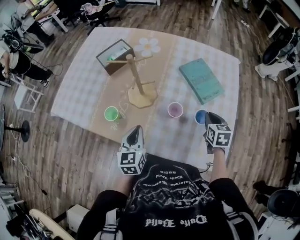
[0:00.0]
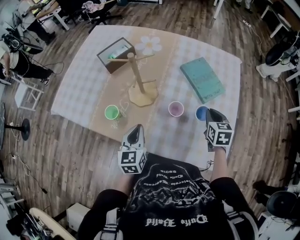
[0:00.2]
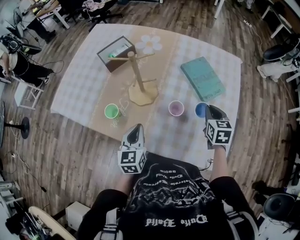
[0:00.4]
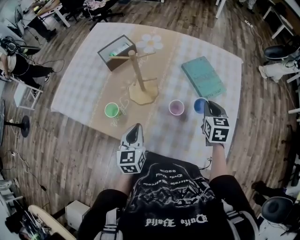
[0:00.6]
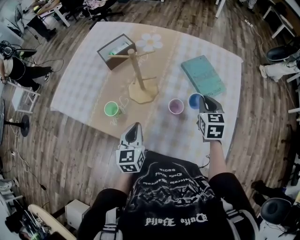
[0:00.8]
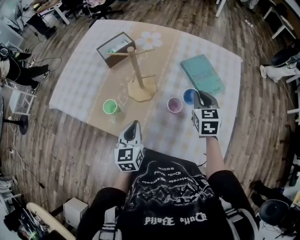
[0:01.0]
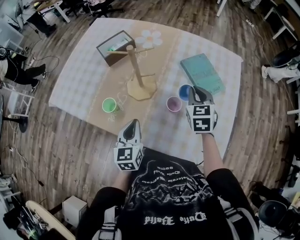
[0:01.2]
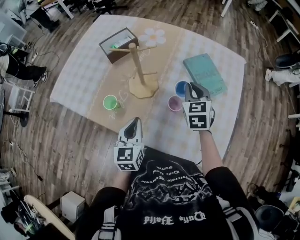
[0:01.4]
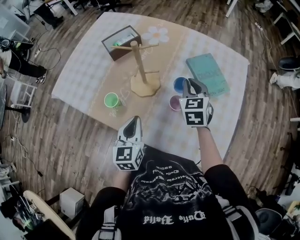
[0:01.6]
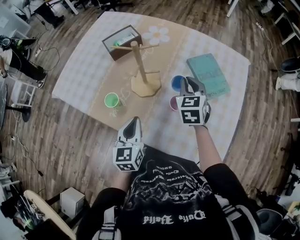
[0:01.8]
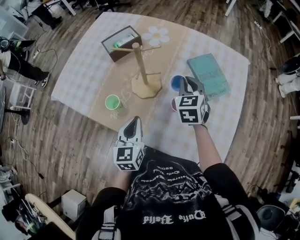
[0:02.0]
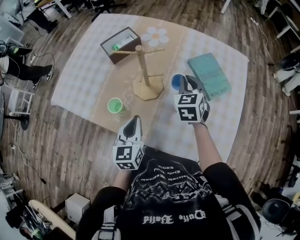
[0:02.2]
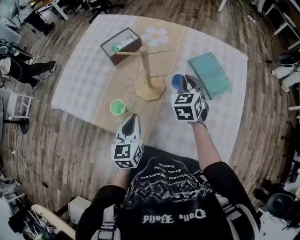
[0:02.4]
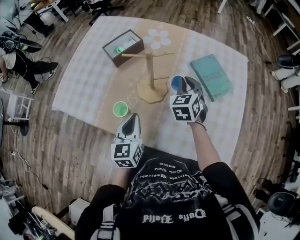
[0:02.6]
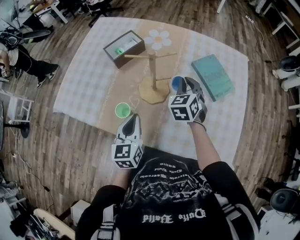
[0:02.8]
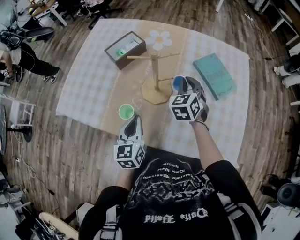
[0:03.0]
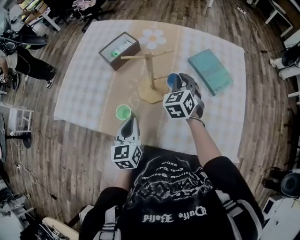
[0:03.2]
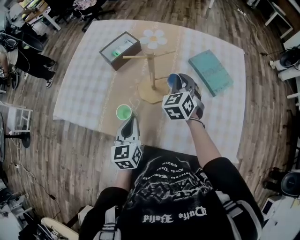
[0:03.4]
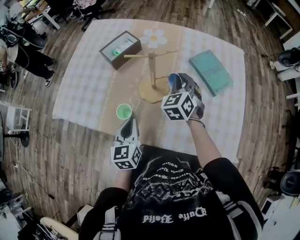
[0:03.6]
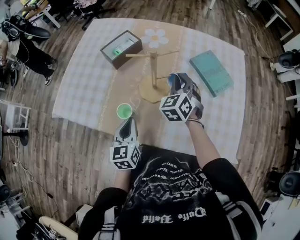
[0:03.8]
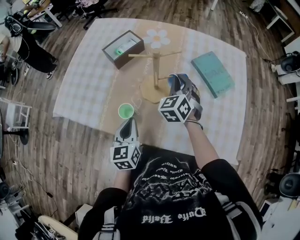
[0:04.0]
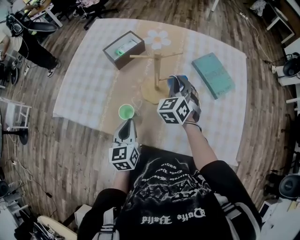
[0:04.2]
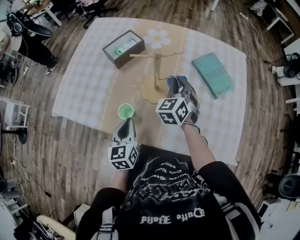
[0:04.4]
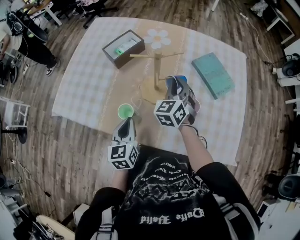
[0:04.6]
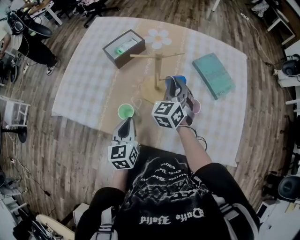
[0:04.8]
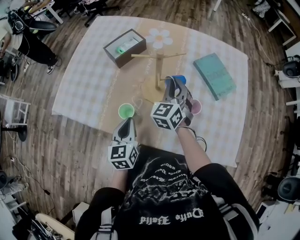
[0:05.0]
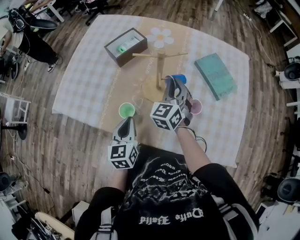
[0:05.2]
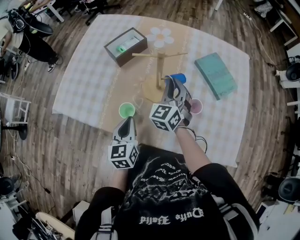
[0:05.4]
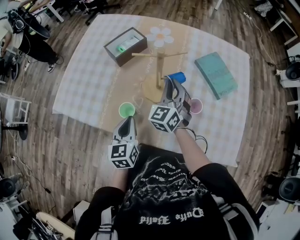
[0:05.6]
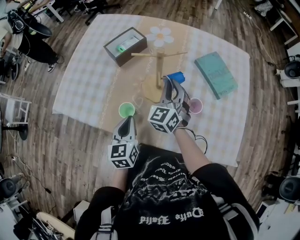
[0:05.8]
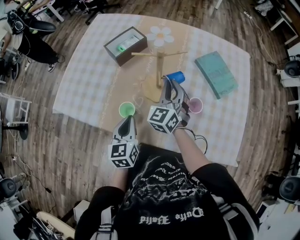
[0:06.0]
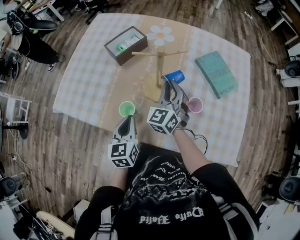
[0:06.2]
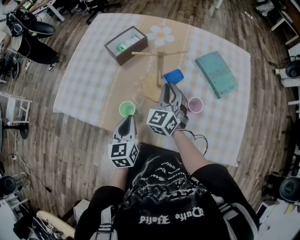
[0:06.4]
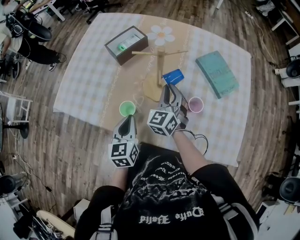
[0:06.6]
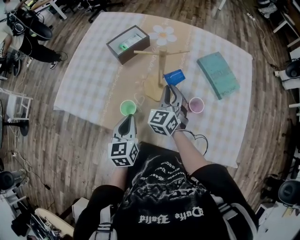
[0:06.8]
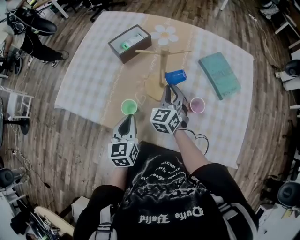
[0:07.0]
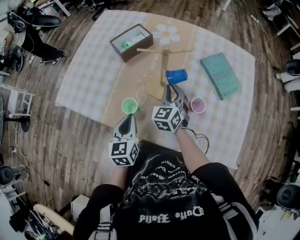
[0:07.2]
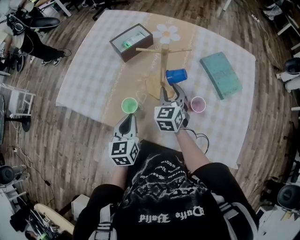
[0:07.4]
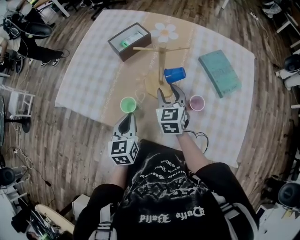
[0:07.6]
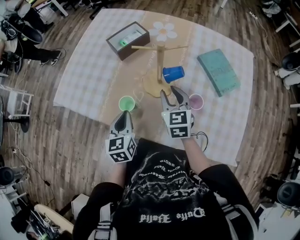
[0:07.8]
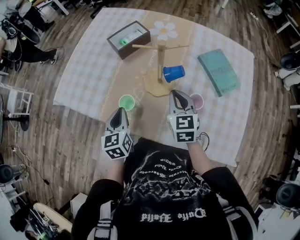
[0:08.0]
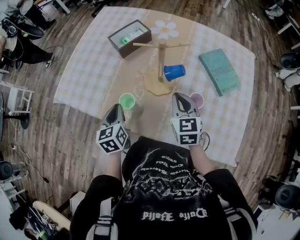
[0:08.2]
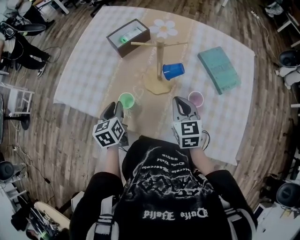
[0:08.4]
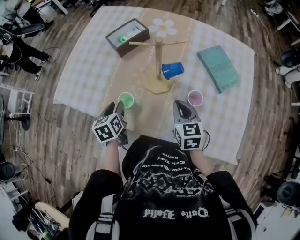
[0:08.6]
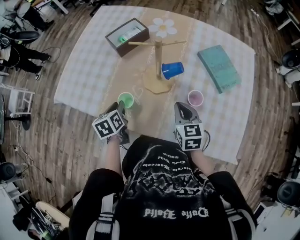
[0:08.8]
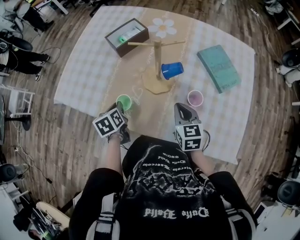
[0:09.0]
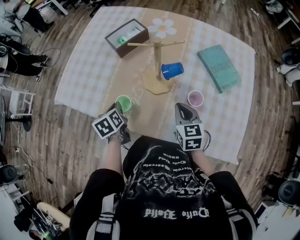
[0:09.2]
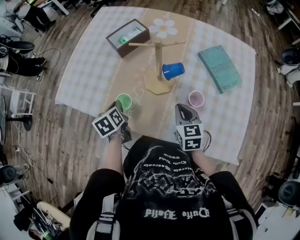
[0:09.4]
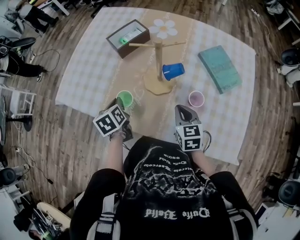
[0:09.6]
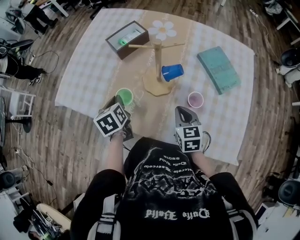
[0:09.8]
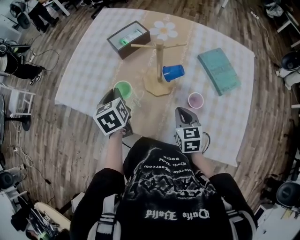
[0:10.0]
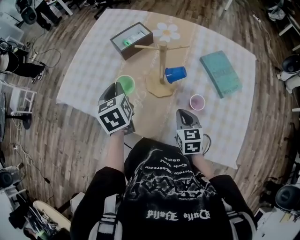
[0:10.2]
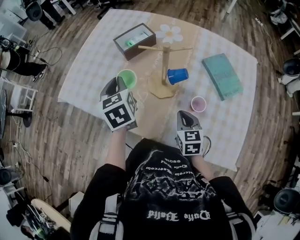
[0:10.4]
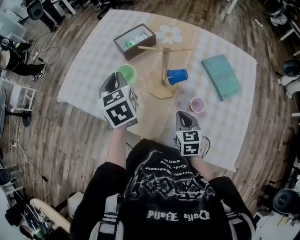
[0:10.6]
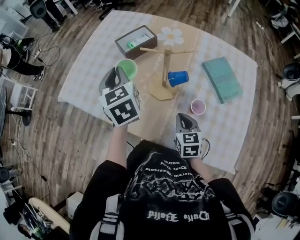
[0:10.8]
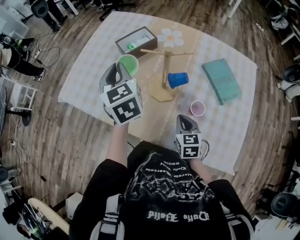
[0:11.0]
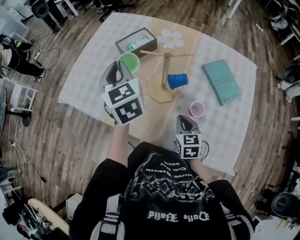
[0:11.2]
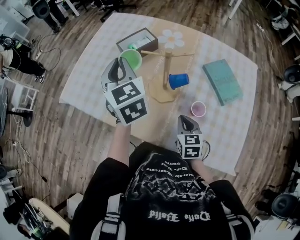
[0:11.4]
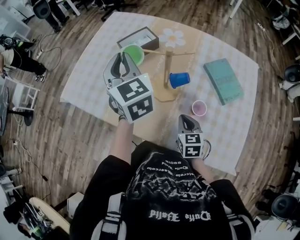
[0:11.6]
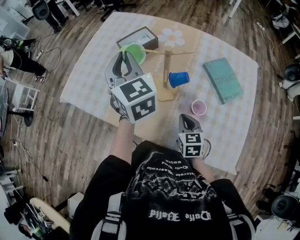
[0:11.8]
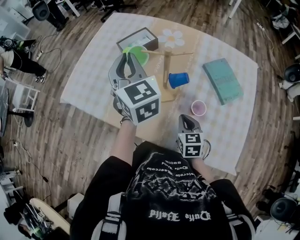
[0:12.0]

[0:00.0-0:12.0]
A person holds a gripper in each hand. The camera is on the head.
0:00.0 to 0:01.6: The right gripper is displaced to the left, forward and upward by some 20 cm, and rotates roughly 30 degrees.
0:01.6 to 0:03.0: The two grippers go some 10 cm to the left.
0:03.0 to 0:04.4: The right gripper ends up about 5 cm from where it was. The left gripper shifts by roughly 5 cm.
0:04.4 to 0:06.0: The grippers stay close to where they were, moving slightly.
0:06.0 to 0:07.6: The right gripper moves roughly 5 cm, swivels some 30 degrees, and opens.
0:07.6 to 0:09.0: The right gripper goes some 10 cm backward, and closes up, while the left gripper is displaced downward and to the left by about 10 cm, turns by about 30 degrees, and opens and closes again.
0:09.0 to 0:10.4: The left gripper goes some 15 cm upward and forward, and rotates some 30 degrees.
0:10.4 to 0:12.0: The left gripper goes some 15 cm upward and to the right, and swivels approximately 30 degrees.

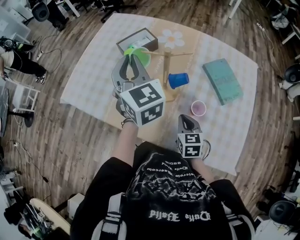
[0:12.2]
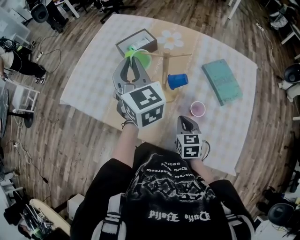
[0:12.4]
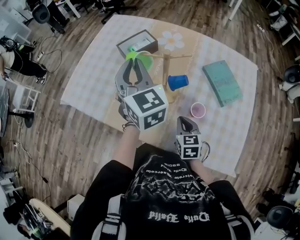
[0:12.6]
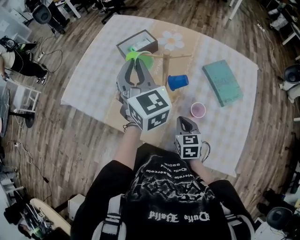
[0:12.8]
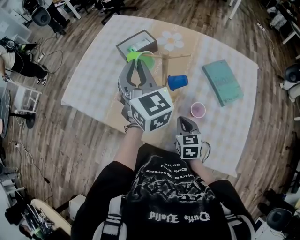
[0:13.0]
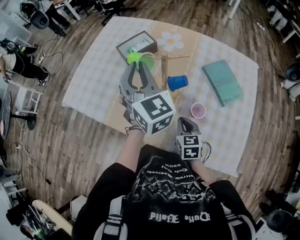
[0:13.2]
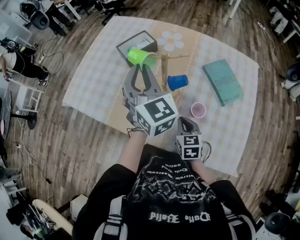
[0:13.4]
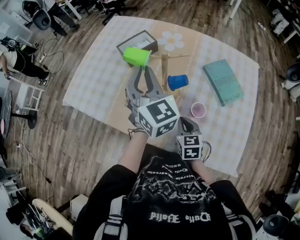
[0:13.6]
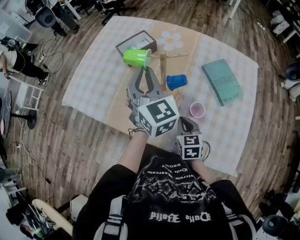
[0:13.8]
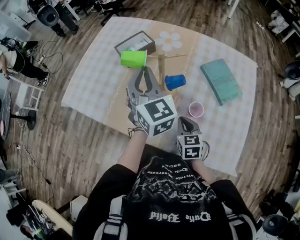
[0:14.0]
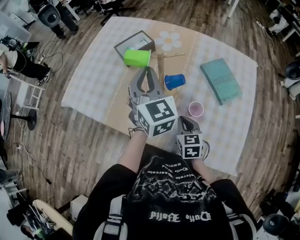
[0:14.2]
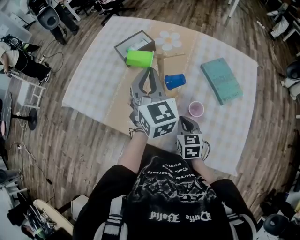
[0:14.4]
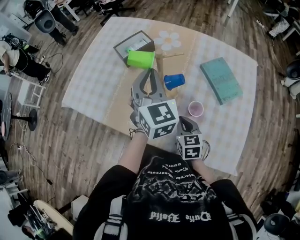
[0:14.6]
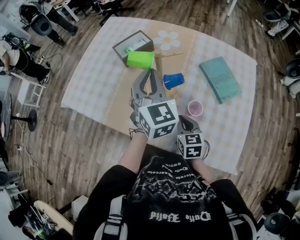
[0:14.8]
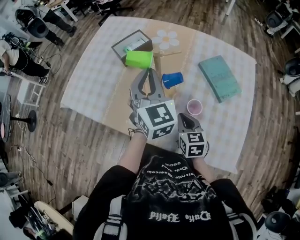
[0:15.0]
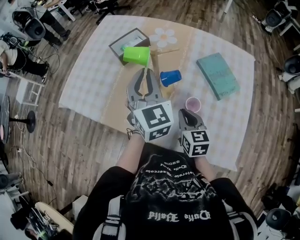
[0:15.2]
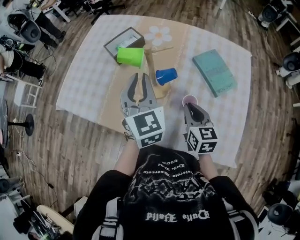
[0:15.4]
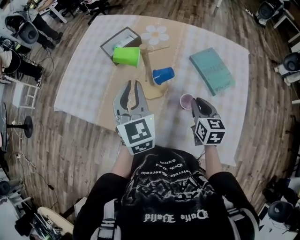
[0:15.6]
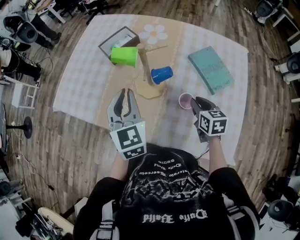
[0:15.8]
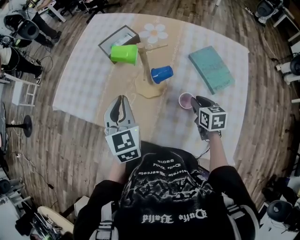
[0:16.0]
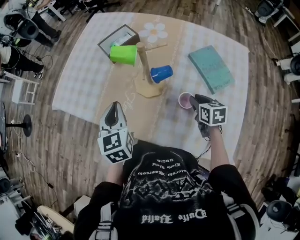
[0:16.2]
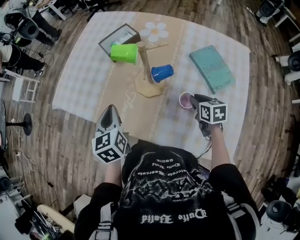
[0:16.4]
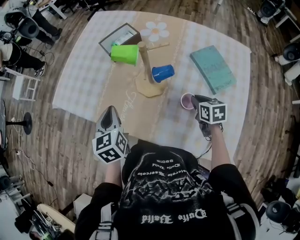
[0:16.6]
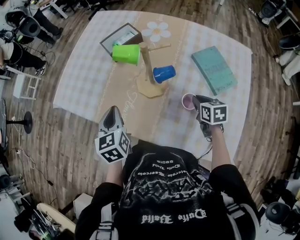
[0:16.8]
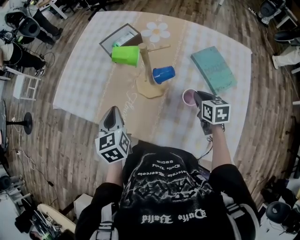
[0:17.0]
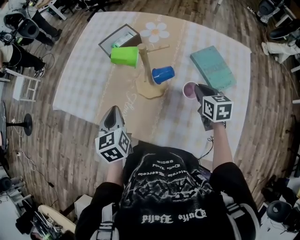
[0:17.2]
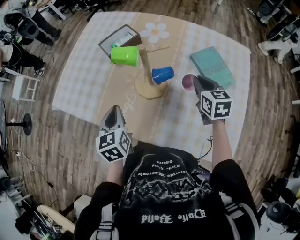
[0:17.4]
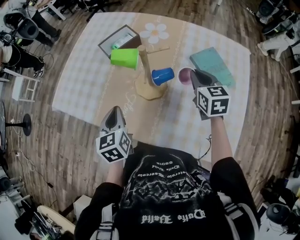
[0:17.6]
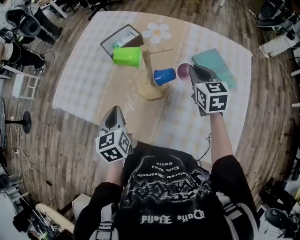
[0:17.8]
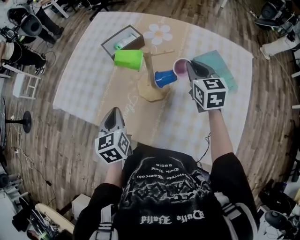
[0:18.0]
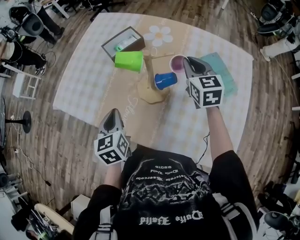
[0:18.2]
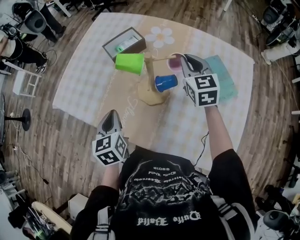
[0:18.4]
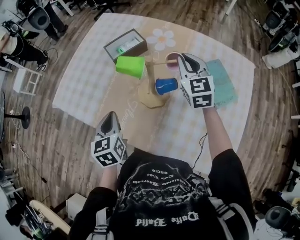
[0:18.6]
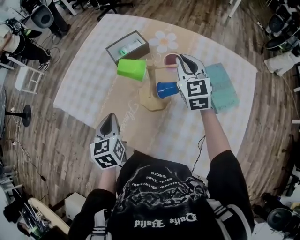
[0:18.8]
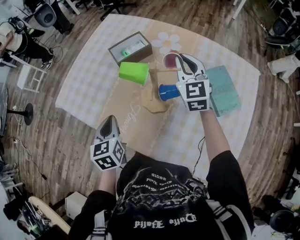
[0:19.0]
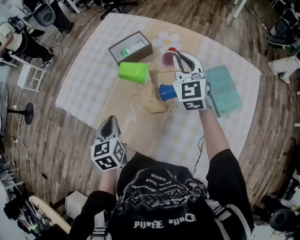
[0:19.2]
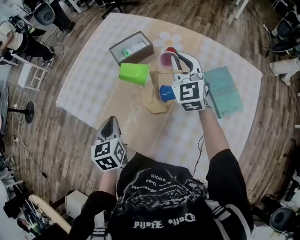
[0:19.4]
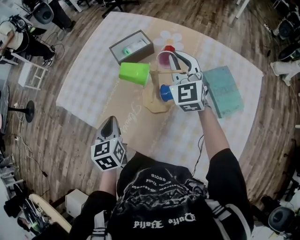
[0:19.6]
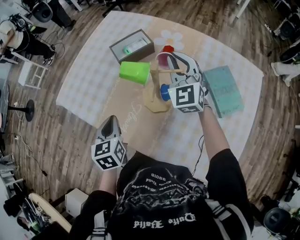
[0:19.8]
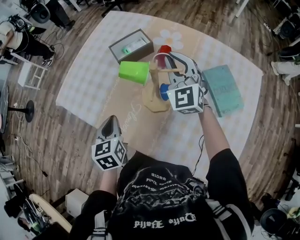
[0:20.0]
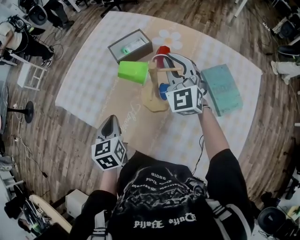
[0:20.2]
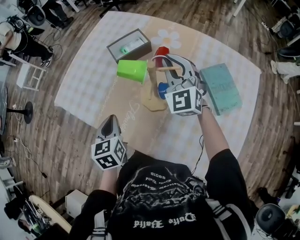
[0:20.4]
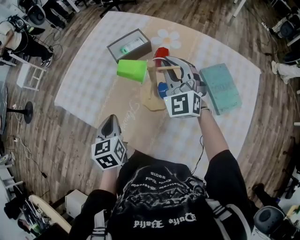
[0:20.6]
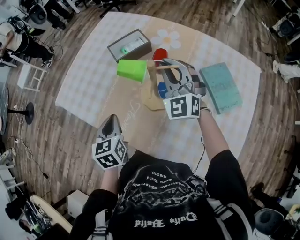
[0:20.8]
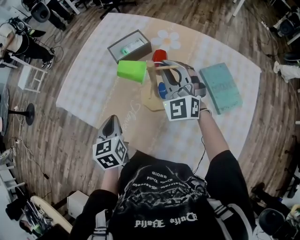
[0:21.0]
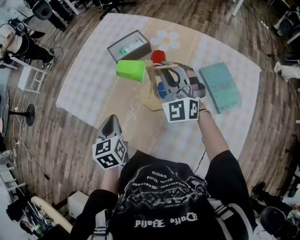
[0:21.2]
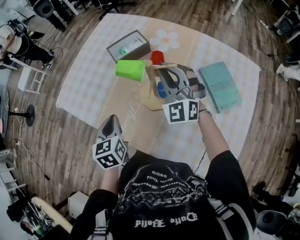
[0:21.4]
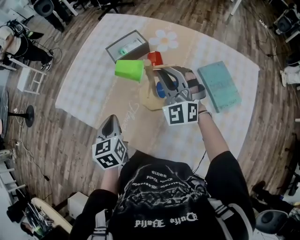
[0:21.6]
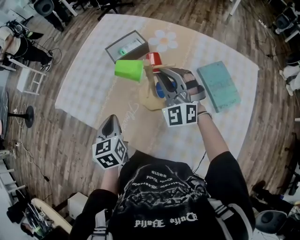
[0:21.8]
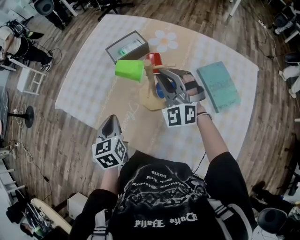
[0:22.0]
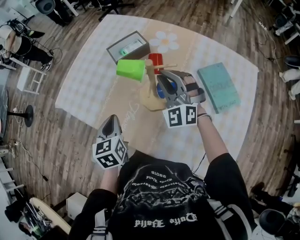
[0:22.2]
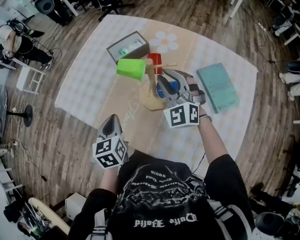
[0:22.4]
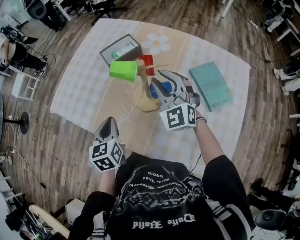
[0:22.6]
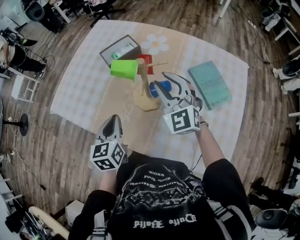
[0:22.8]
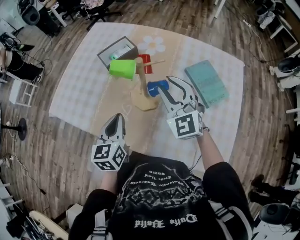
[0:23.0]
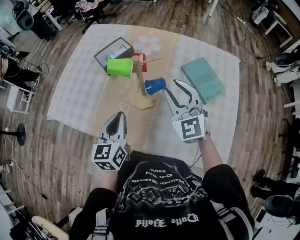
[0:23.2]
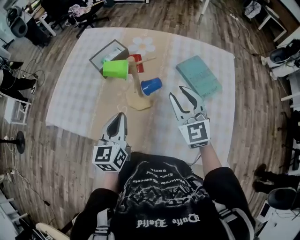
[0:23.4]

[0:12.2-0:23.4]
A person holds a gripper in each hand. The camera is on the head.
0:12.2 to 0:13.8: The left gripper changes place by some 5 cm.
0:13.8 to 0:15.4: The right gripper is displaced to the right and upward by about 10 cm.
0:15.4 to 0:17.0: The right gripper moves to the right and downward, approximately 10 cm. Meanwhile the left gripper travels to the left and downward by about 15 cm, and rotates roughly 30 degrees.
0:17.0 to 0:18.6: The right gripper moves forward and upward, some 25 cm, and changes its angle by roughly 40 degrees.
0:18.6 to 0:20.2: The right gripper goes some 5 cm to the left, and turns by approximately 30 degrees.
0:20.2 to 0:21.8: The right gripper heads backward, covering about 5 cm.
0:21.8 to 0:23.4: The left gripper shifts some 5 cm to the right, and changes its angle by some 30 degrees, while the right gripper moves backward and to the right, approximately 15 cm, turns by approximately 40 degrees, and opens up.

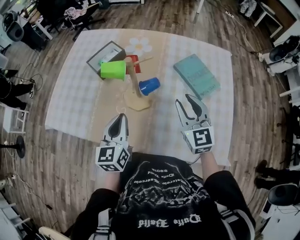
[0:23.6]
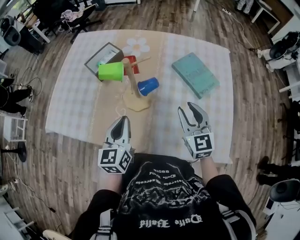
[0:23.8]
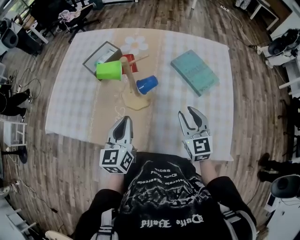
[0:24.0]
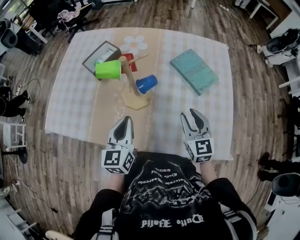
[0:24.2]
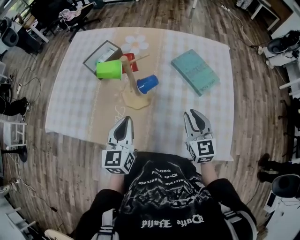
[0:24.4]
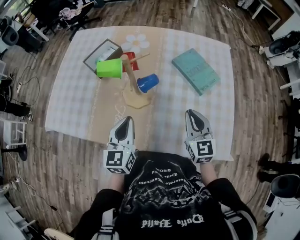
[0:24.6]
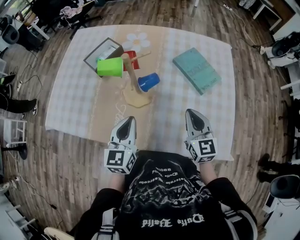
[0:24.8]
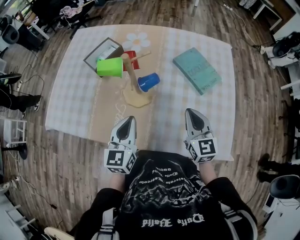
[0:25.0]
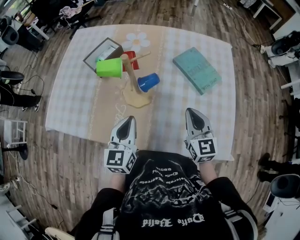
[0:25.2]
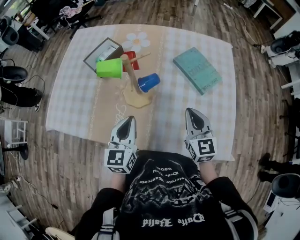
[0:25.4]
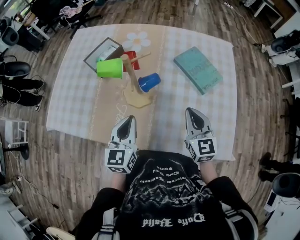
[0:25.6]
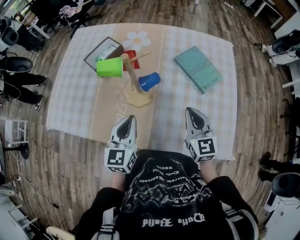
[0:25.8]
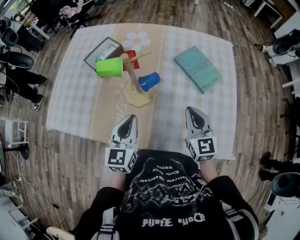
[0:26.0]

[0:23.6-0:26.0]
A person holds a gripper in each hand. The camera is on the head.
0:23.6 to 0:24.8: The right gripper is displaced downward by some 5 cm, and closes its fingers.
0:24.8 to 0:26.0: The two grippers keep their place.
